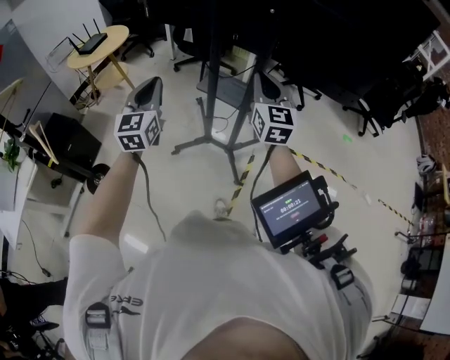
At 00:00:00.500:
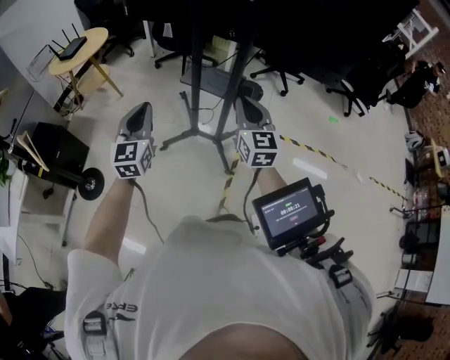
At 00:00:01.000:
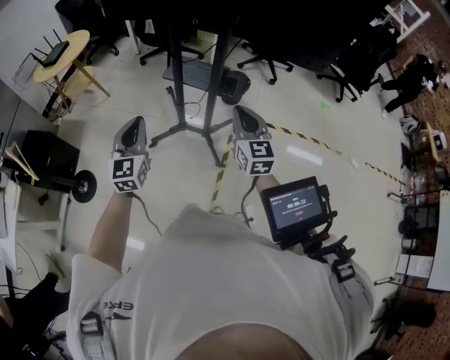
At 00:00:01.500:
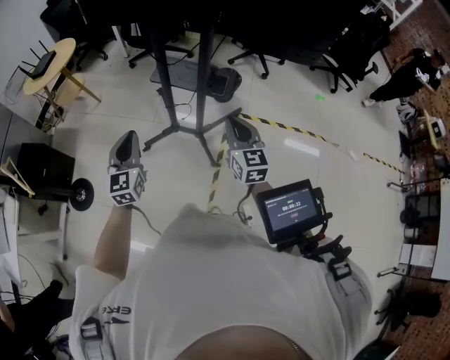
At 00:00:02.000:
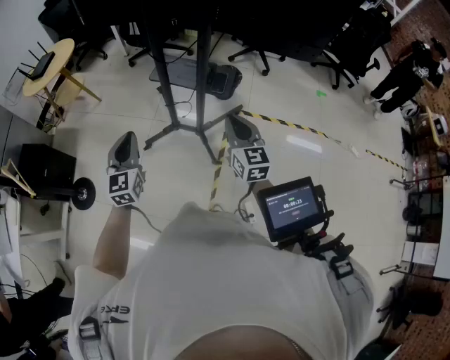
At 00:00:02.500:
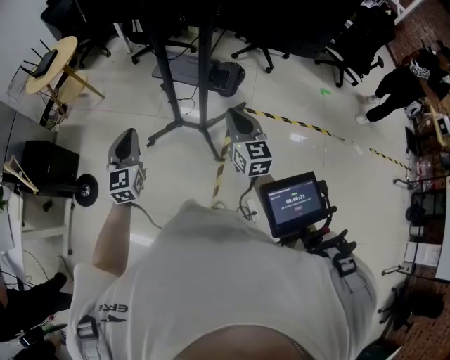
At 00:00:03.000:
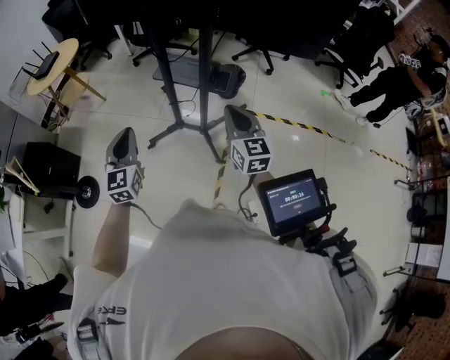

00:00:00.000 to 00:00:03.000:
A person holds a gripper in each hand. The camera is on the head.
00:00:00.000 to 00:00:01.500: The grippers both shift downward, backward and to the right by roughly 20 cm.
00:00:01.500 to 00:00:03.000: There are only small adjustments of the grippers.

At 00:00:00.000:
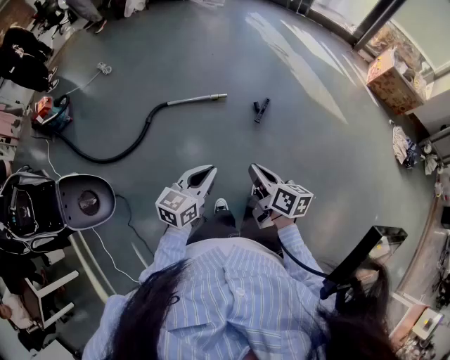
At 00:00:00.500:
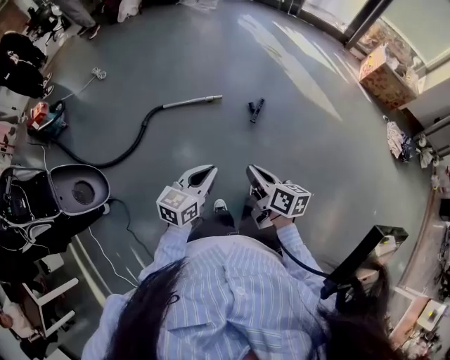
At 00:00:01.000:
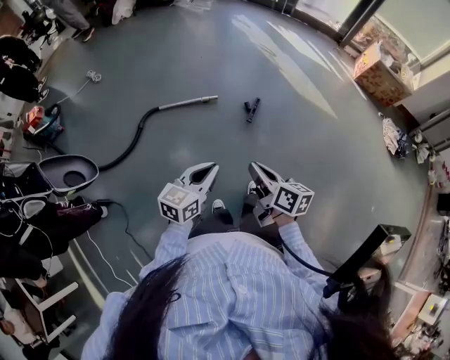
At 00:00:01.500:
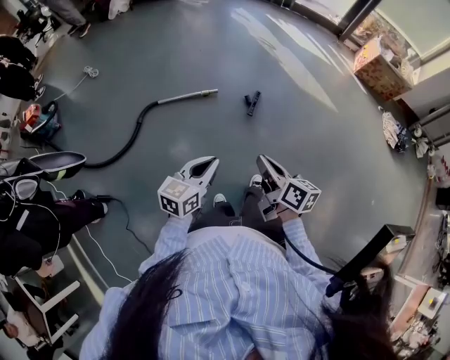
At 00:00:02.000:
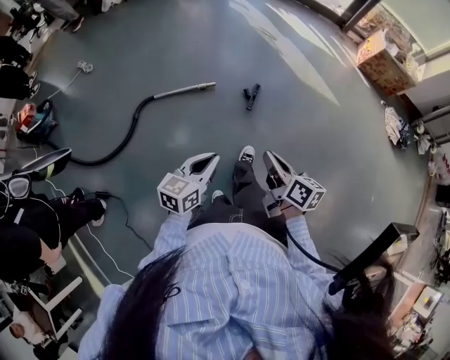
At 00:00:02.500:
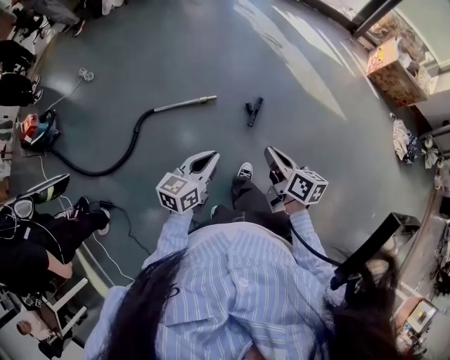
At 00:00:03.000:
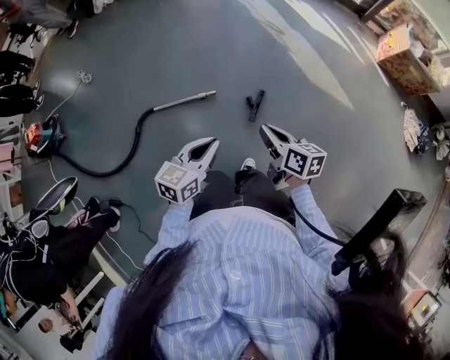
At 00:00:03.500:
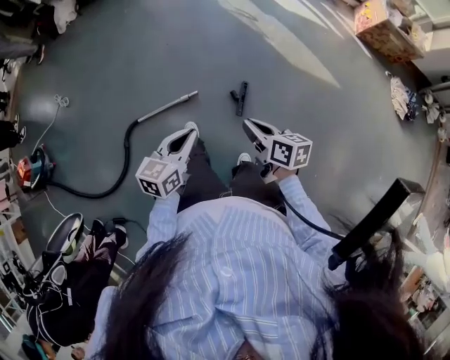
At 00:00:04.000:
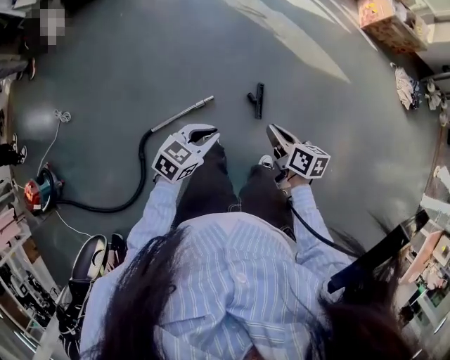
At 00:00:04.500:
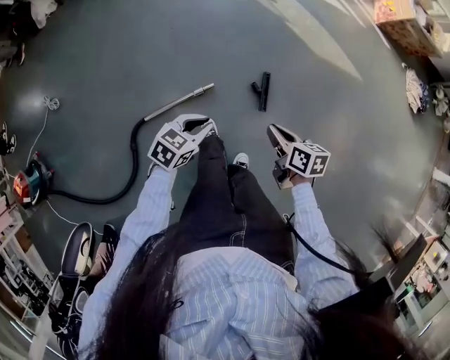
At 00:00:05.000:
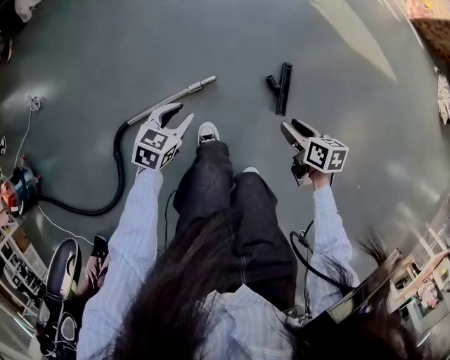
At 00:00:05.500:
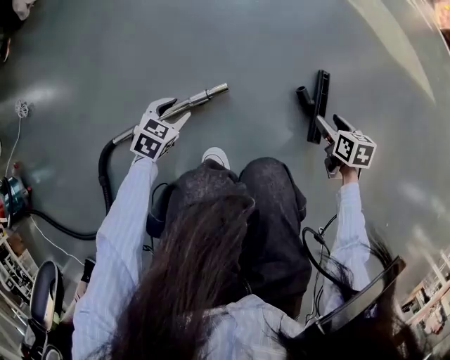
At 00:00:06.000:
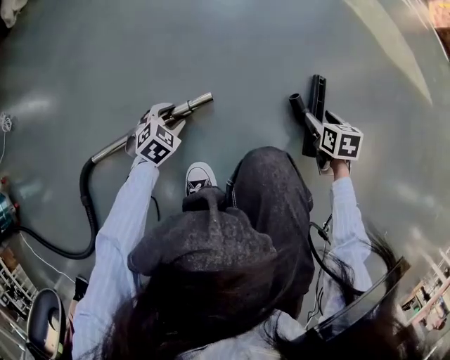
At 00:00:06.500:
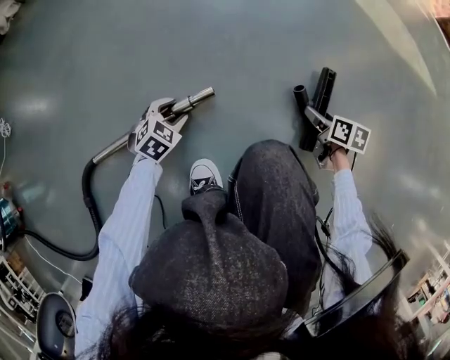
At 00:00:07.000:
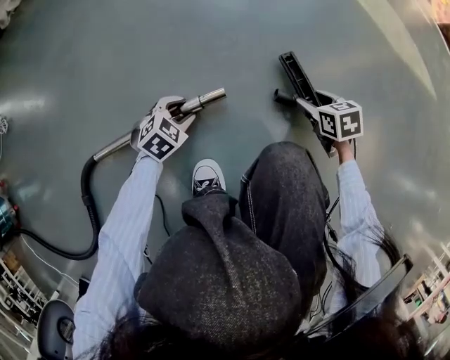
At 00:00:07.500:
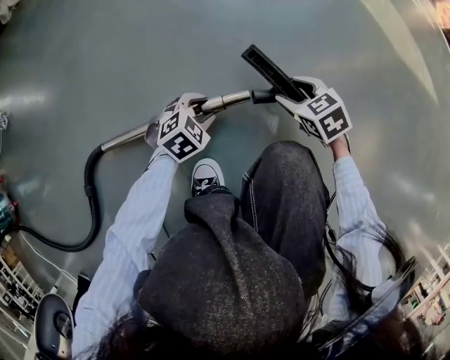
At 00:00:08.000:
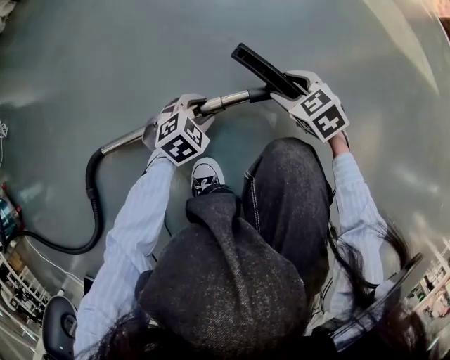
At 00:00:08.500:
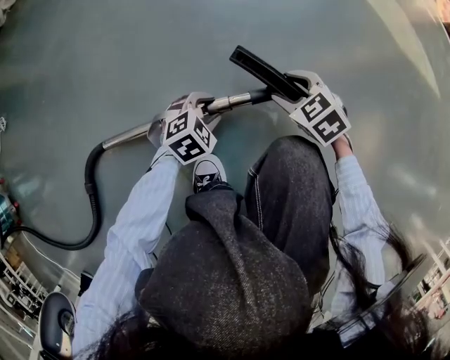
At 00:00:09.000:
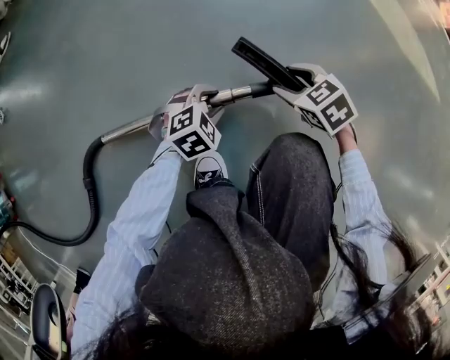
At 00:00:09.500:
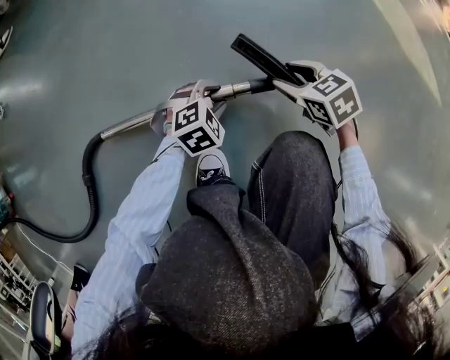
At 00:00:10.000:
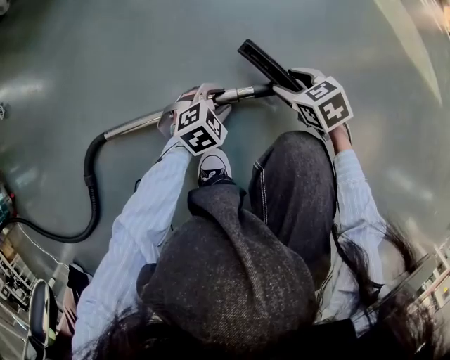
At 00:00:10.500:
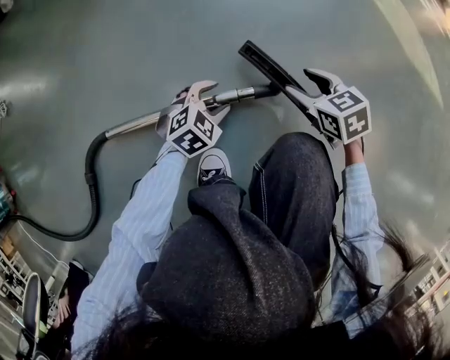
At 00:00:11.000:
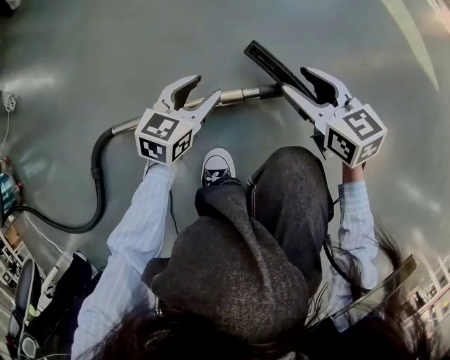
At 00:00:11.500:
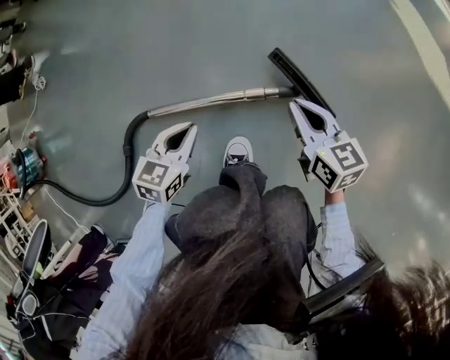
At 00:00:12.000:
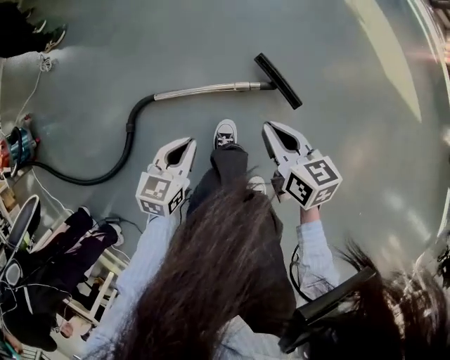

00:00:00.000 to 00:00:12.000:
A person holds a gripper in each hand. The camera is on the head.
00:00:00.000 to 00:00:02.000: The right gripper shifts by about 5 cm, while the left gripper moves about 5 cm.
00:00:02.000 to 00:00:04.000: The pair of grippers is taken approximately 40 cm. The left gripper changes its angle by approximately 40 degrees.
00:00:04.000 to 00:00:06.000: Both grippers travel together downward, some 80 cm. The right gripper rotates roughly 40 degrees, and opens its fingers. The left gripper points its fingers some 30 degrees further downward, and opens up.
00:00:06.000 to 00:00:08.000: The left gripper travels to the right by about 5 cm. The right gripper shifts approximately 20 cm to the left, and rotates around the line of its fingers by about 40 degrees, counterclockwise from behind.
00:00:08.000 to 00:00:10.000: The grippers move only a little.
00:00:10.000 to 00:00:12.000: Both grippers move upward, roughly 40 cm. The right gripper swivels some 40 degrees, and closes. The left gripper rolls counterclockwise, seen from behind, by roughly 50 degrees, and closes up.

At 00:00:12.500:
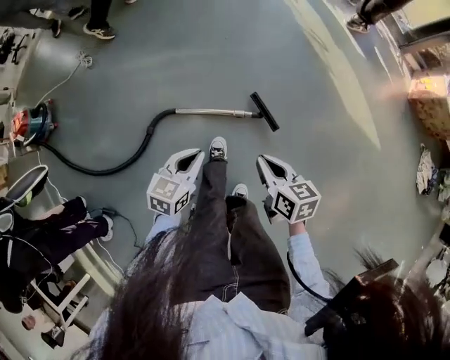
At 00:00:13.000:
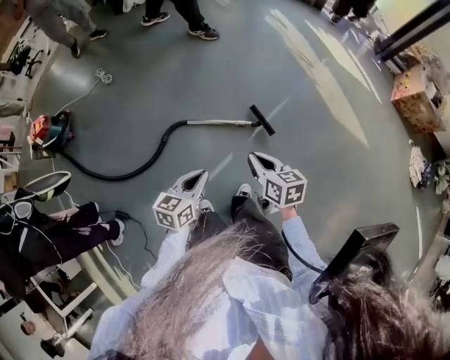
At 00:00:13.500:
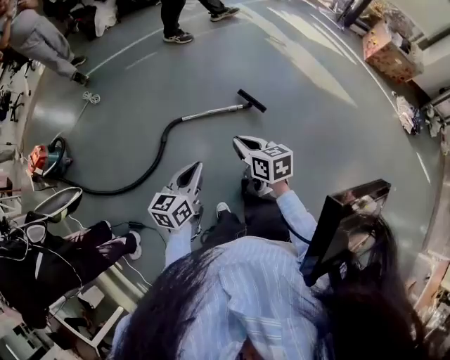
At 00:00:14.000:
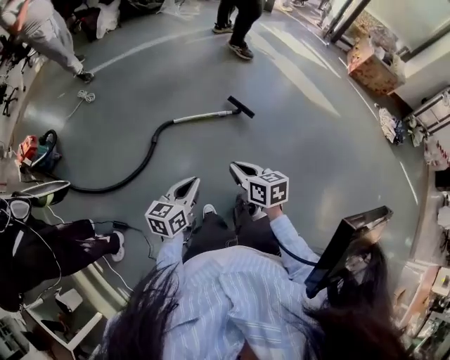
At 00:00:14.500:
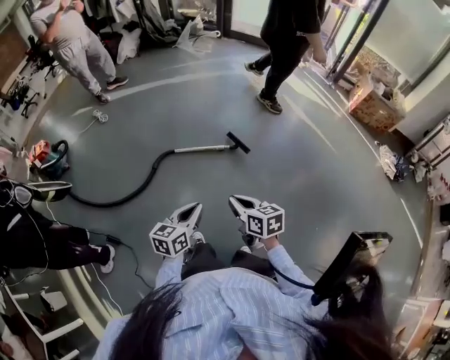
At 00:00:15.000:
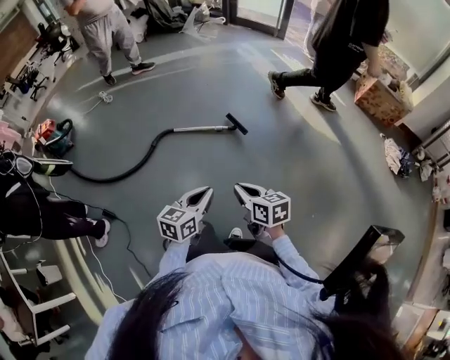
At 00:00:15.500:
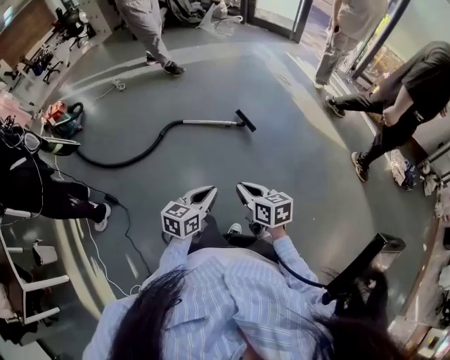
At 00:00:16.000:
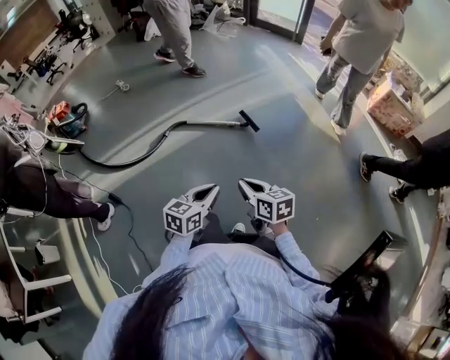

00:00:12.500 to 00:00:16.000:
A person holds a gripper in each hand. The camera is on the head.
00:00:12.500 to 00:00:14.500: The two grippers travel together, backward, about 40 cm. Both grippers travel together upward, roughly 20 cm.
00:00:14.500 to 00:00:16.000: The left gripper shifts some 15 cm to the right and backward, while the right gripper shifts some 15 cm backward and to the right.

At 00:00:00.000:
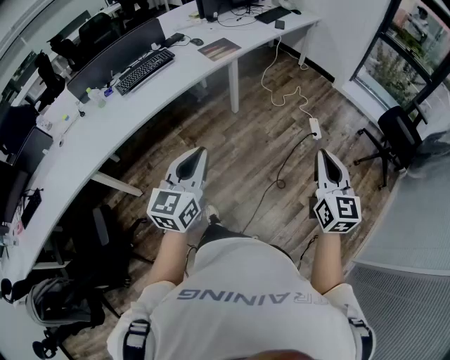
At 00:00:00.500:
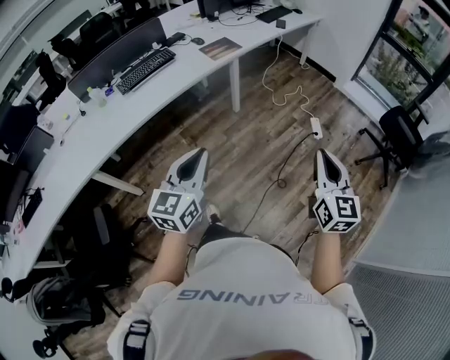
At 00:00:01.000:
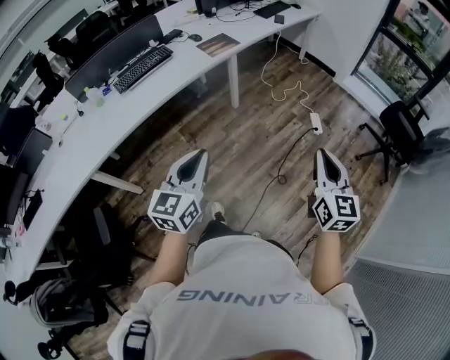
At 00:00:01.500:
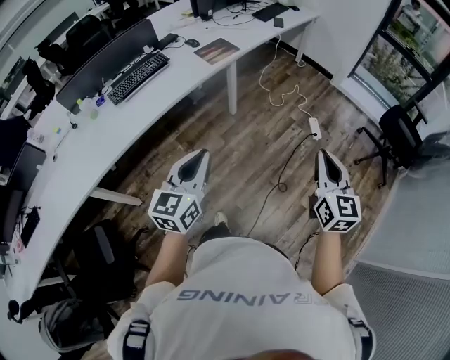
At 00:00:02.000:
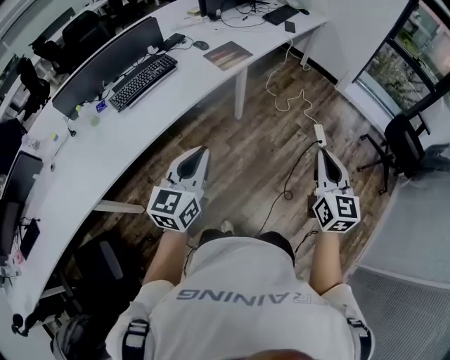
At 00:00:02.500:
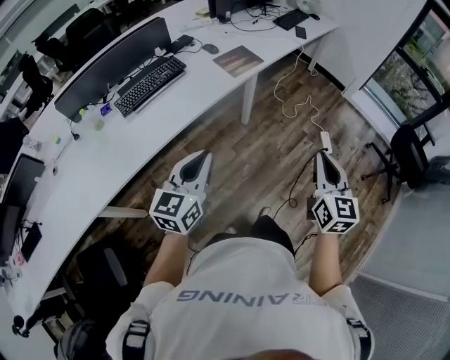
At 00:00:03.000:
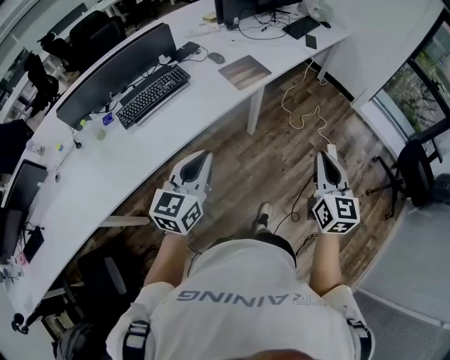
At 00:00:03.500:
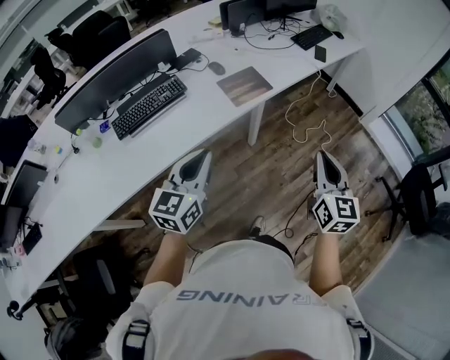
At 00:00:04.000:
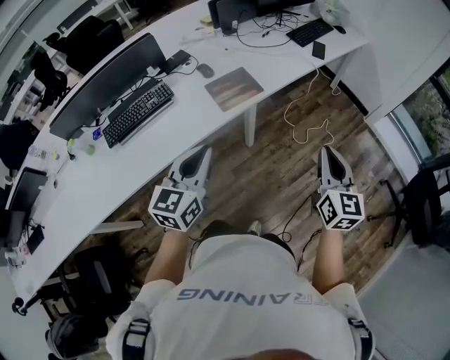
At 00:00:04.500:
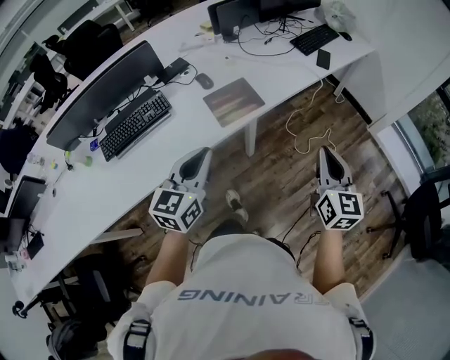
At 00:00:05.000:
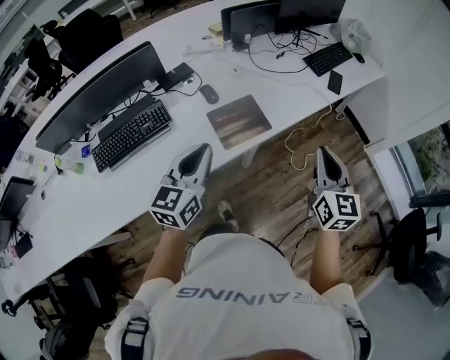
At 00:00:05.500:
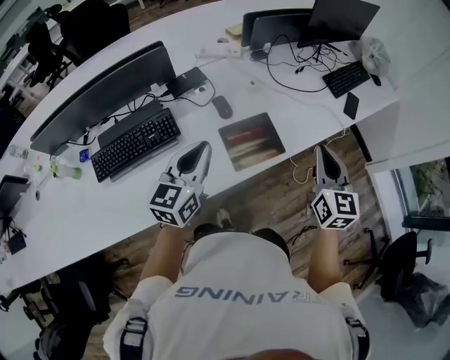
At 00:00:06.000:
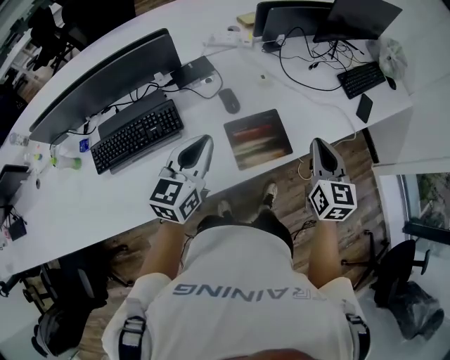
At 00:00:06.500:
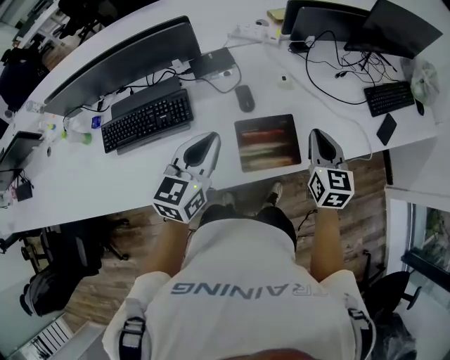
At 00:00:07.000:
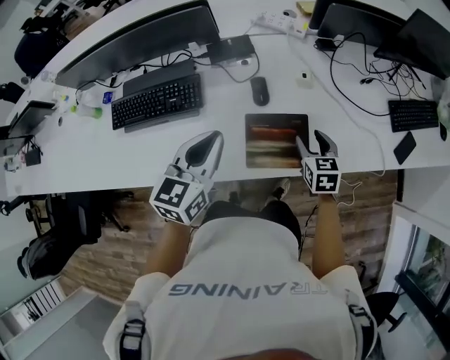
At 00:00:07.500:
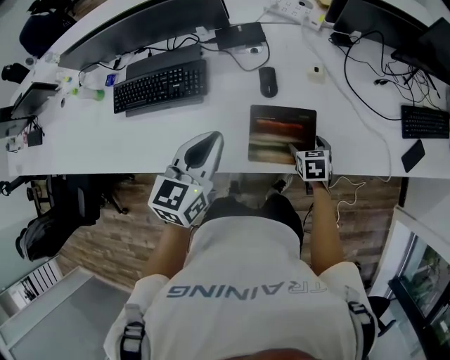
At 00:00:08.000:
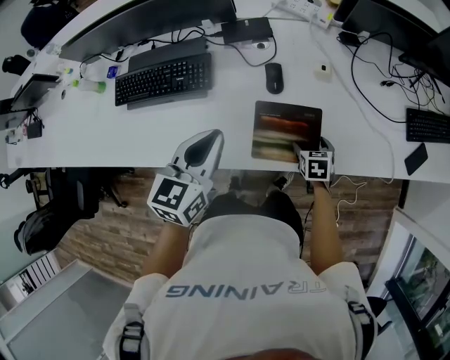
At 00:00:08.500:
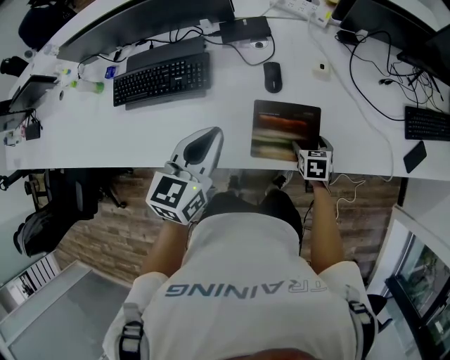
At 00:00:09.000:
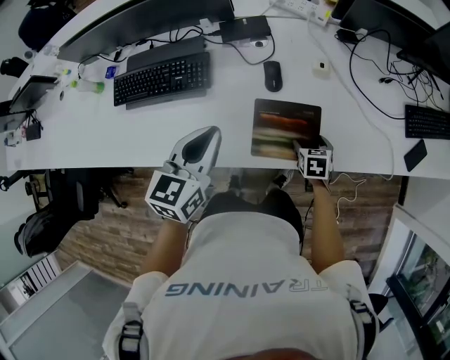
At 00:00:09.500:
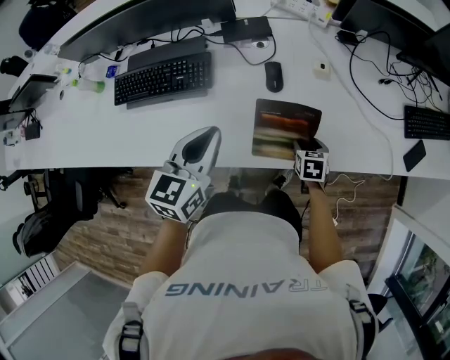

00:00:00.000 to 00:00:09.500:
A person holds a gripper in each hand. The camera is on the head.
00:00:00.000 to 00:00:02.000: The grippers both shift forward and to the left by roughly 20 cm.
00:00:02.000 to 00:00:04.000: Both grippers travel together forward, about 35 cm.
00:00:04.000 to 00:00:05.500: The two grippers go about 35 cm forward and to the left.
00:00:05.500 to 00:00:07.500: The right gripper travels downward by some 35 cm, tilts its fingers about 50 degrees downward, and opens; the left gripper goes roughly 5 cm downward, and rotates approximately 30 degrees.
00:00:07.500 to 00:00:09.500: The grippers stay close to where they were, moving slightly.
